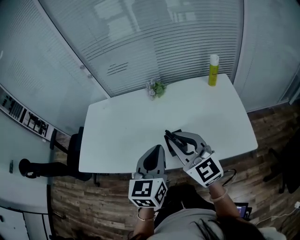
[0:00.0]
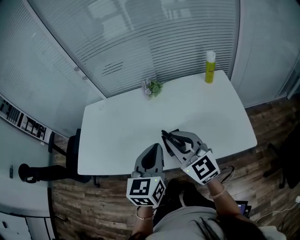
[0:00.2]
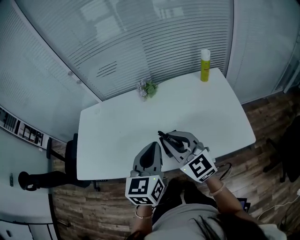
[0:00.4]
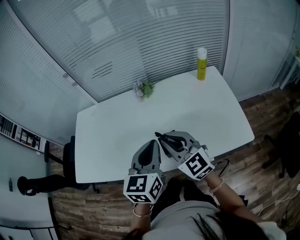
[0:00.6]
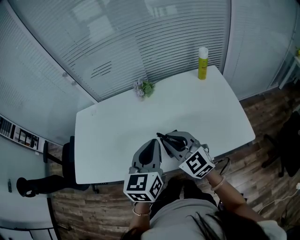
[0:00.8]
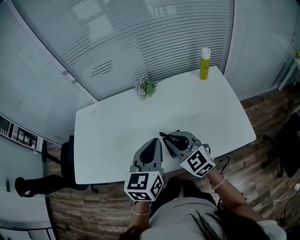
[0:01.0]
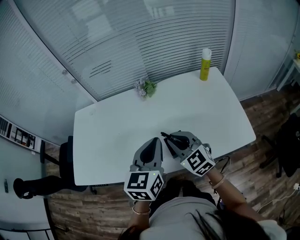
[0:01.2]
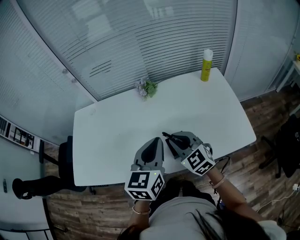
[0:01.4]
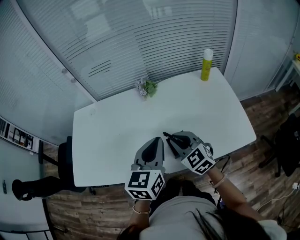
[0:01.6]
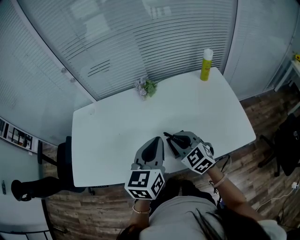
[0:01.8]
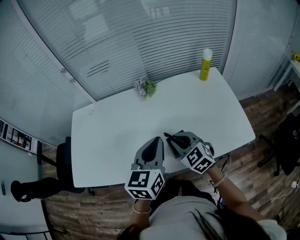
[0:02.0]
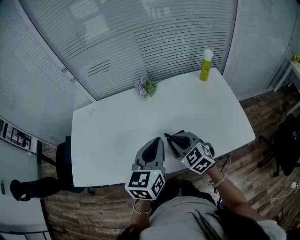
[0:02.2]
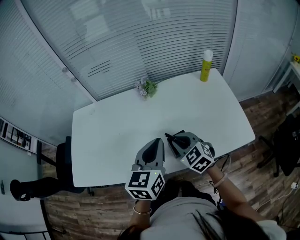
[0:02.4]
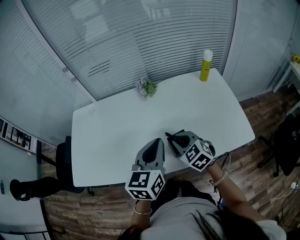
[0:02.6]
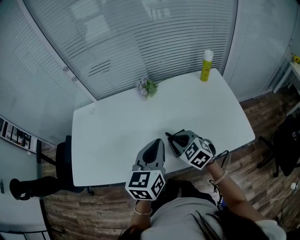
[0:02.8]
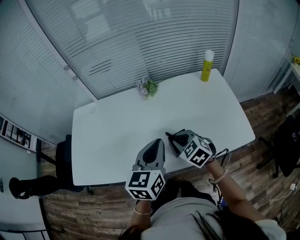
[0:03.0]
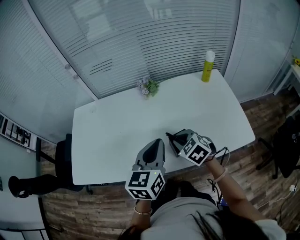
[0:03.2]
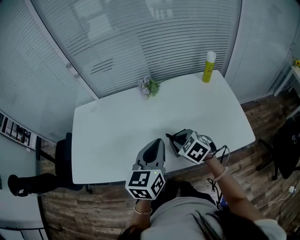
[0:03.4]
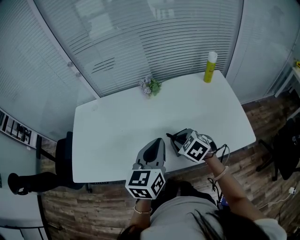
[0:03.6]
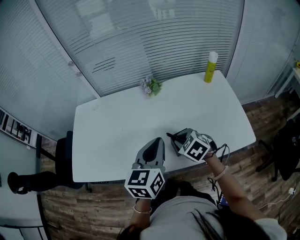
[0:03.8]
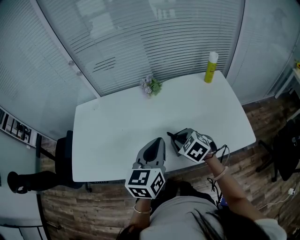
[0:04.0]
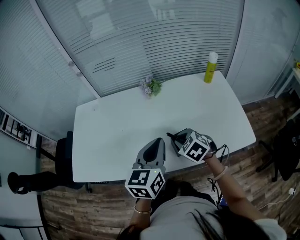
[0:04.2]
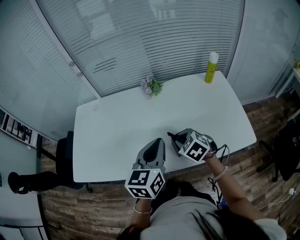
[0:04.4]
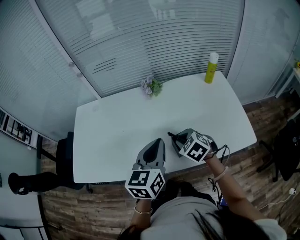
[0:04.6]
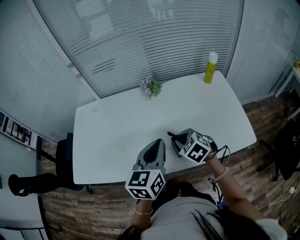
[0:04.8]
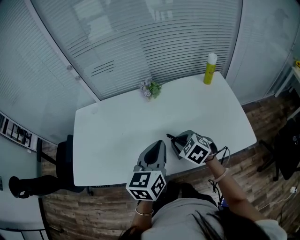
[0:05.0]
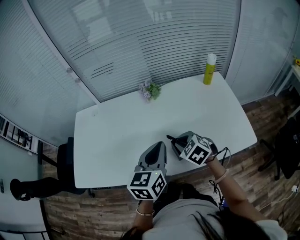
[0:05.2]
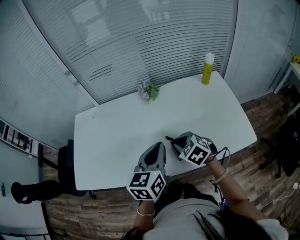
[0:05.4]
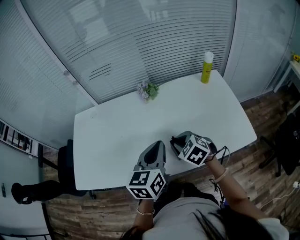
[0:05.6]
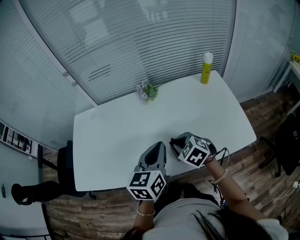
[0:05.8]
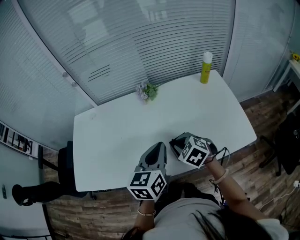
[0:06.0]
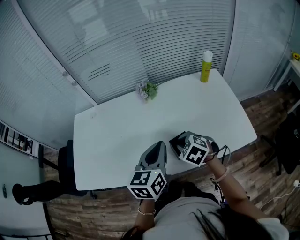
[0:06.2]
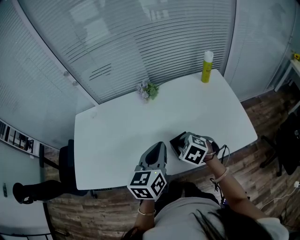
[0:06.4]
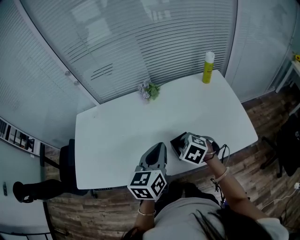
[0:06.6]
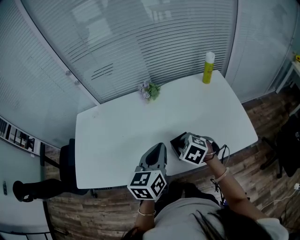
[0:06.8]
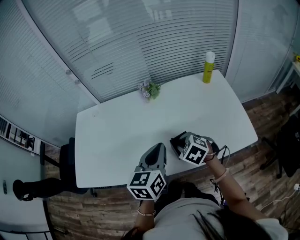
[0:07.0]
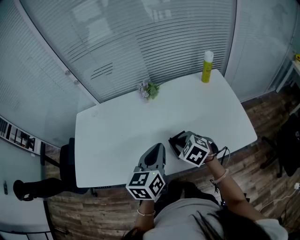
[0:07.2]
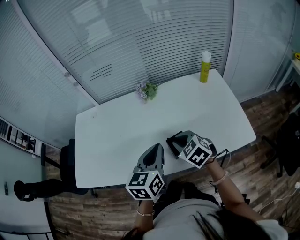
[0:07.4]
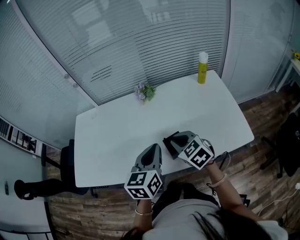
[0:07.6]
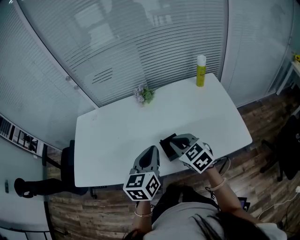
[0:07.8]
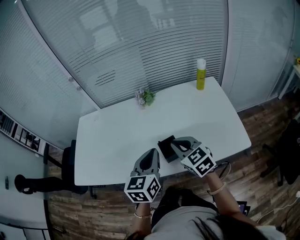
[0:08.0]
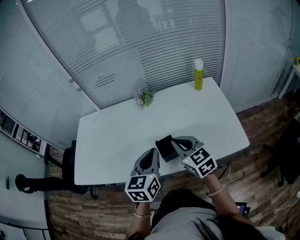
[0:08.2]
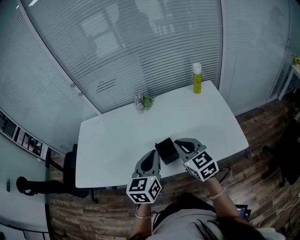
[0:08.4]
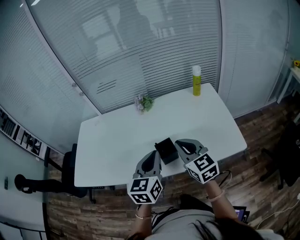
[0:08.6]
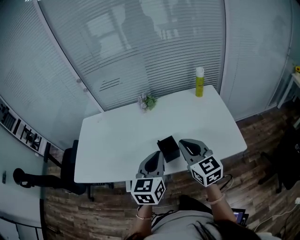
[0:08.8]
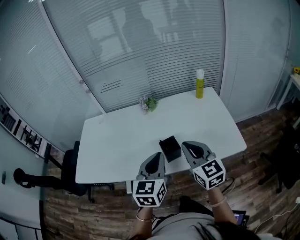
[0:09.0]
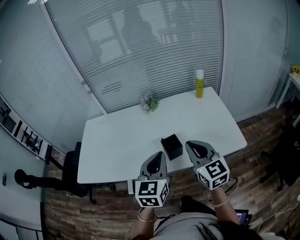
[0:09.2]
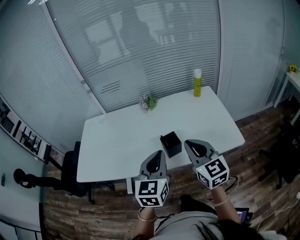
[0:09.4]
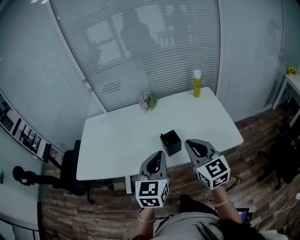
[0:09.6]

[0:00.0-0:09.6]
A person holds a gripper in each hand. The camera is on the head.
0:00.0 to 0:01.6: The left gripper shifts approximately 5 cm forward. The right gripper travels downward and forward by approximately 15 cm, and rotates about 20 degrees.
0:01.6 to 0:03.2: The right gripper swivels some 20 degrees.
0:03.2 to 0:06.4: The grippers stay close to where they were, moving slightly.
0:06.4 to 0:08.0: The right gripper travels upward by about 10 cm, and tilts its fingers about 30 degrees upward.
0:08.0 to 0:09.6: Both grippers move backward and upward, roughly 15 cm. The right gripper turns by roughly 20 degrees.

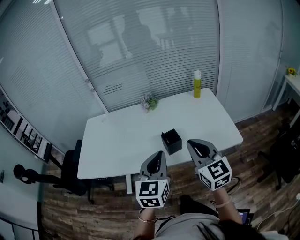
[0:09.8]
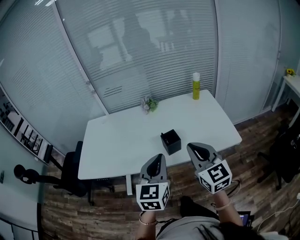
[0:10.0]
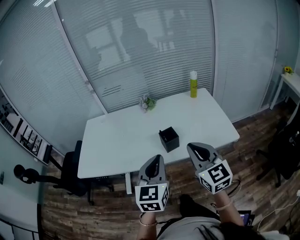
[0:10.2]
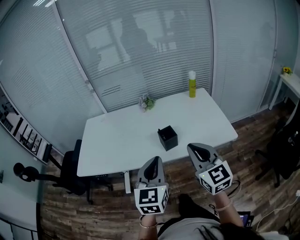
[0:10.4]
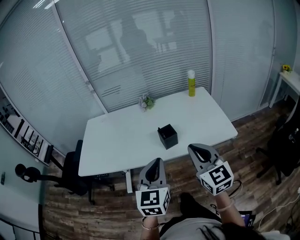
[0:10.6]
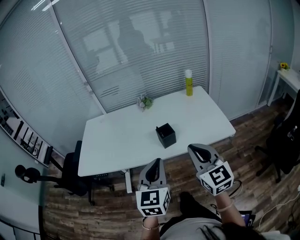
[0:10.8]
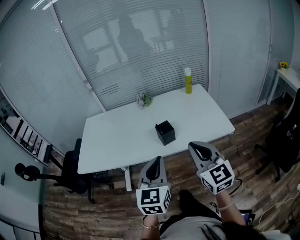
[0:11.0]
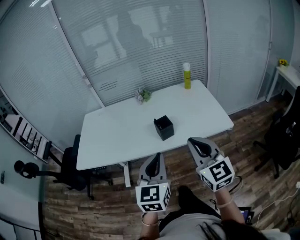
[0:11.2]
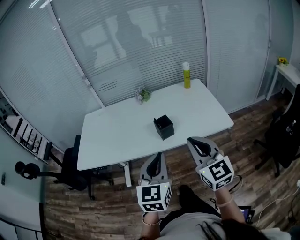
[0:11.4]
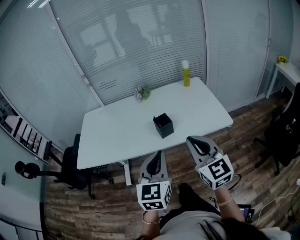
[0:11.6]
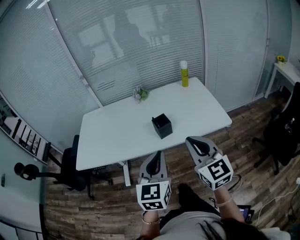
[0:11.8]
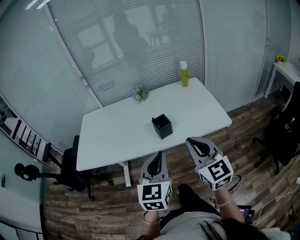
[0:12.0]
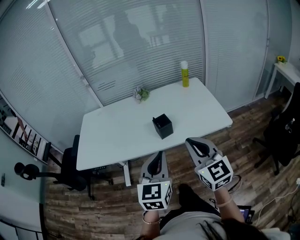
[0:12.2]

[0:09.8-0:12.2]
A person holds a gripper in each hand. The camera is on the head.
0:09.8 to 0:11.0: Both grippers travel together backward, roughly 10 cm.
0:11.0 to 0:12.2: The grippers move only a little.

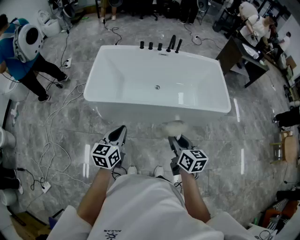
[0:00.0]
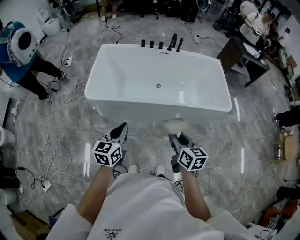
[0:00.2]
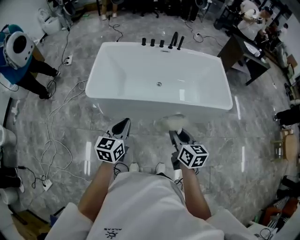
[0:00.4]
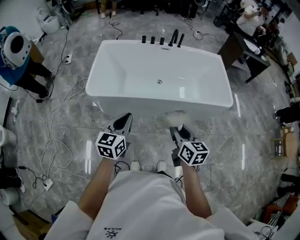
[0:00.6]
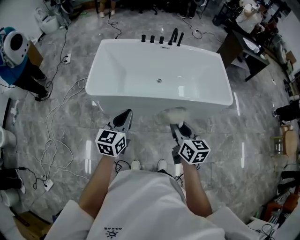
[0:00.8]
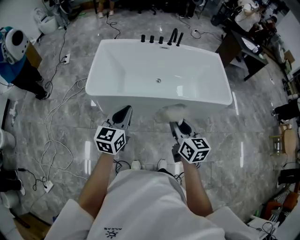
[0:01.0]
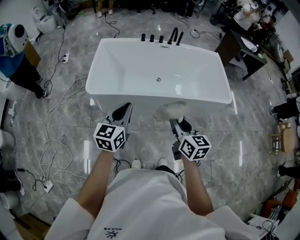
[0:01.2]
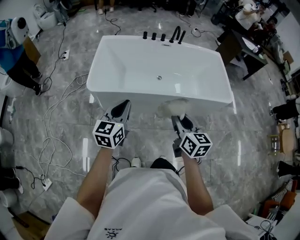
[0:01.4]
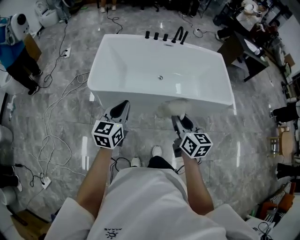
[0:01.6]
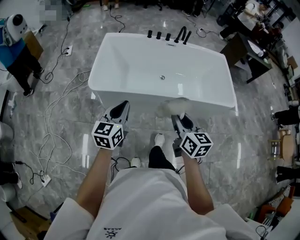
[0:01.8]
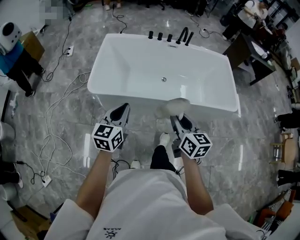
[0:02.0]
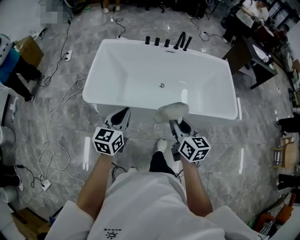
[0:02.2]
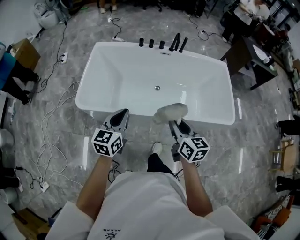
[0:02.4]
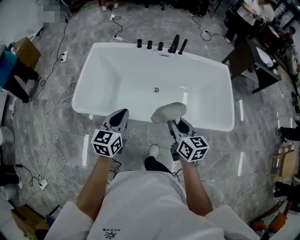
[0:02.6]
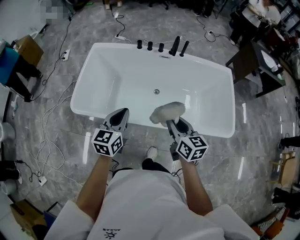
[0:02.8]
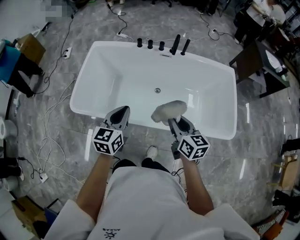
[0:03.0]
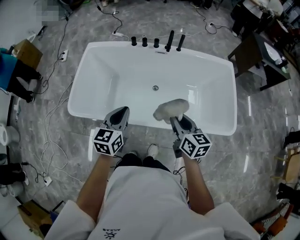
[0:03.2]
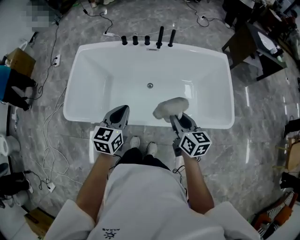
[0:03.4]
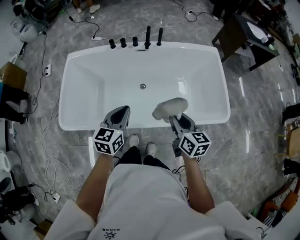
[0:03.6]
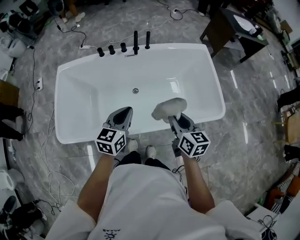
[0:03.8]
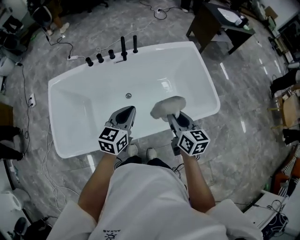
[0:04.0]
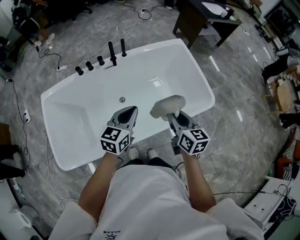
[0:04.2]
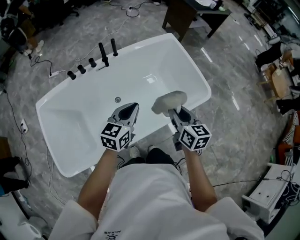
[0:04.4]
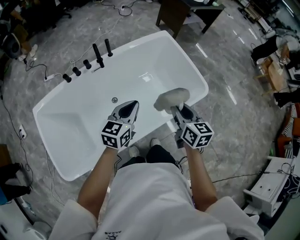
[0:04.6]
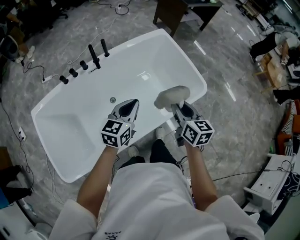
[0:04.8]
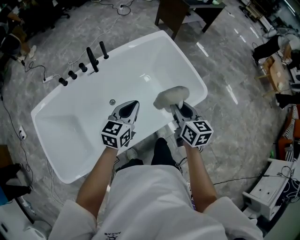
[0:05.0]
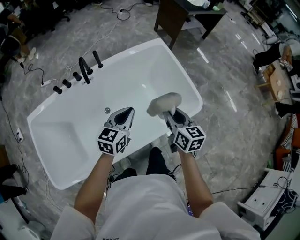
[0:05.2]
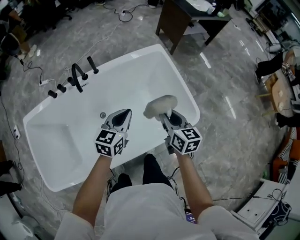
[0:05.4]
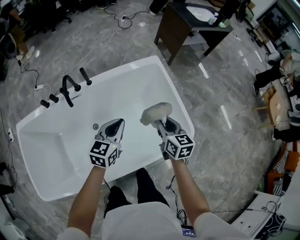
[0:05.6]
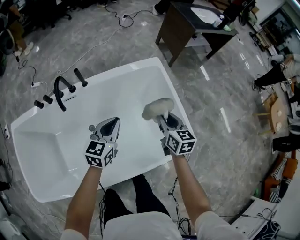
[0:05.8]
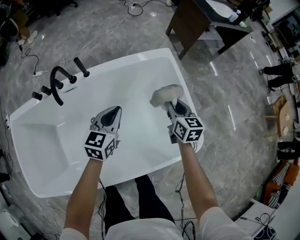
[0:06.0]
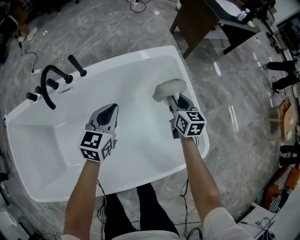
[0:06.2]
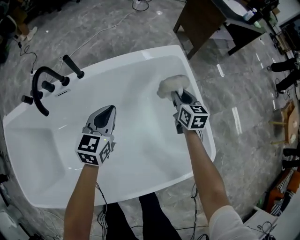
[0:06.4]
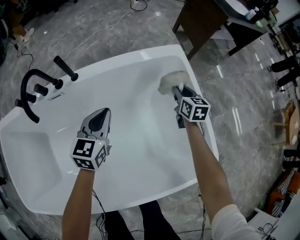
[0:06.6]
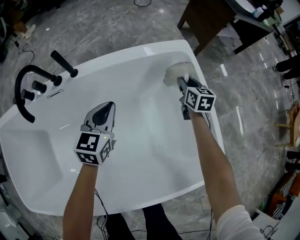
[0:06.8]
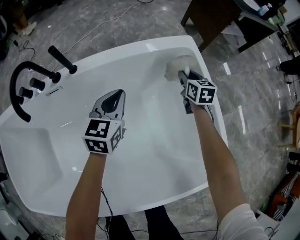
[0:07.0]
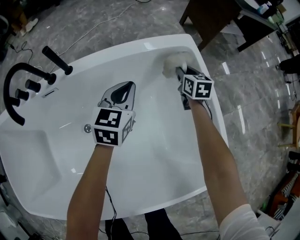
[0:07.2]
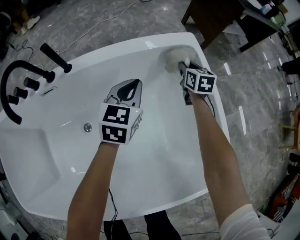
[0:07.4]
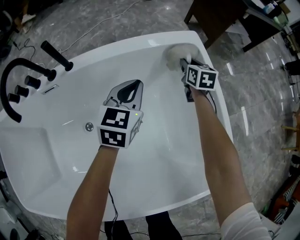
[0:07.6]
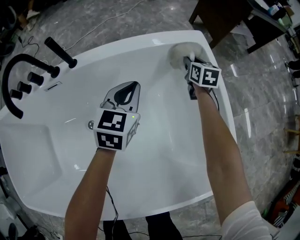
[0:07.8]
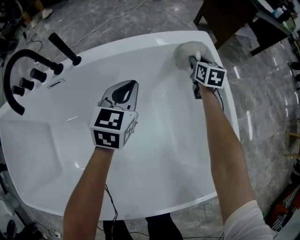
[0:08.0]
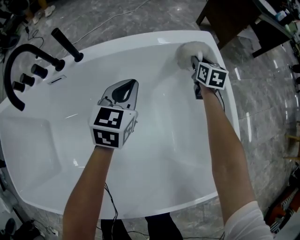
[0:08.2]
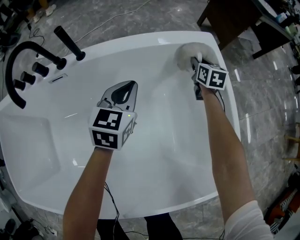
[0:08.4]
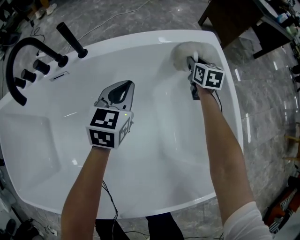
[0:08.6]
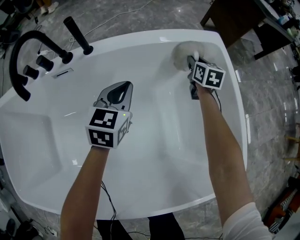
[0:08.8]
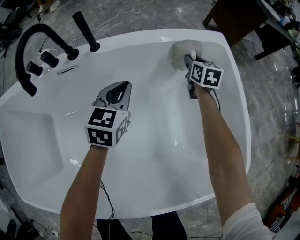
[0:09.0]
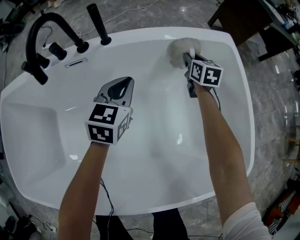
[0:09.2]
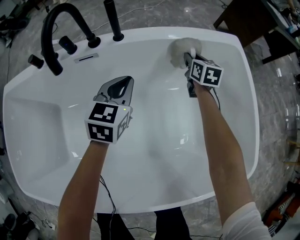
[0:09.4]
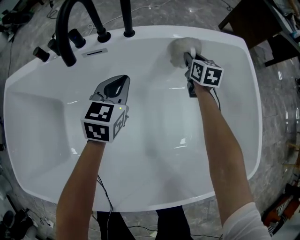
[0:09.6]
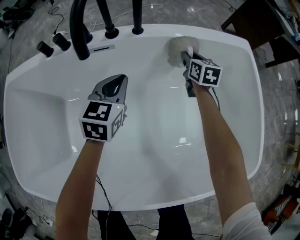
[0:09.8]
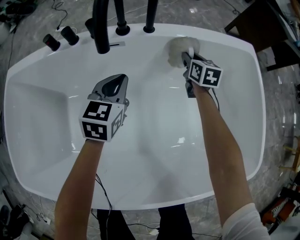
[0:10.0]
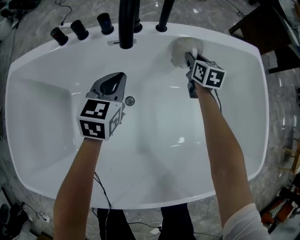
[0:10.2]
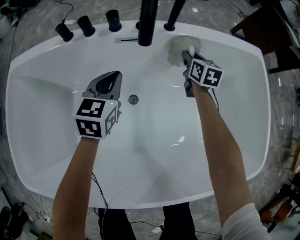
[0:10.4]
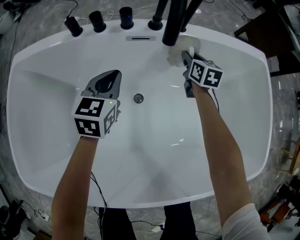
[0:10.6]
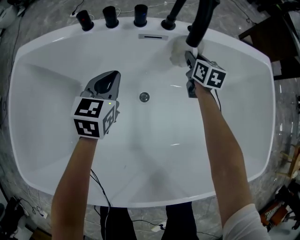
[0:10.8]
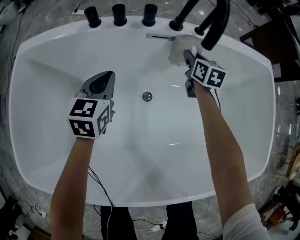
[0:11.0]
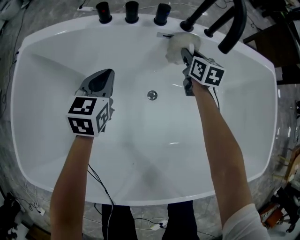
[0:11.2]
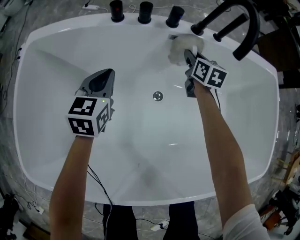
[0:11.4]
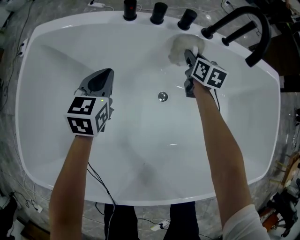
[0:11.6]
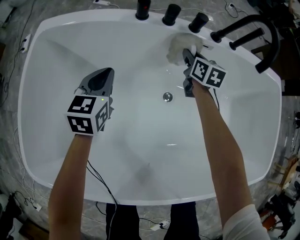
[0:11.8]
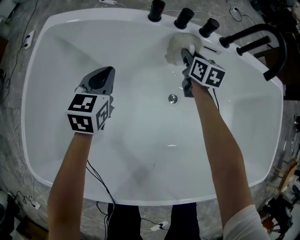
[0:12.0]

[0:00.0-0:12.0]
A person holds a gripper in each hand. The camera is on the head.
0:00.0 to 0:01.6: The grippers both shift to the left by about 5 cm.
0:01.6 to 0:03.0: The grippers both shift forward and to the right by about 35 cm.
0:03.0 to 0:04.4: The right gripper ends up about 15 cm from where it was, and turns by some 40 degrees; the left gripper changes place by some 25 cm, and turns by roughly 40 degrees.
0:04.4 to 0:06.0: Both grippers travel together forward and downward, some 40 cm.
0:06.0 to 0:07.6: The left gripper shifts approximately 25 cm downward and forward, while the right gripper travels forward and downward by approximately 35 cm.
0:07.6 to 0:09.0: The two grippers go approximately 10 cm to the left.
0:09.0 to 0:10.4: Both grippers move to the left, roughly 30 cm.
0:10.4 to 0:12.0: Both grippers move to the left, roughly 35 cm.
